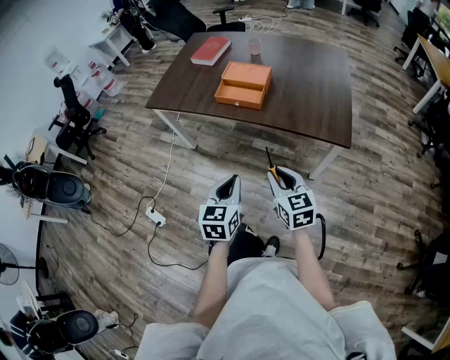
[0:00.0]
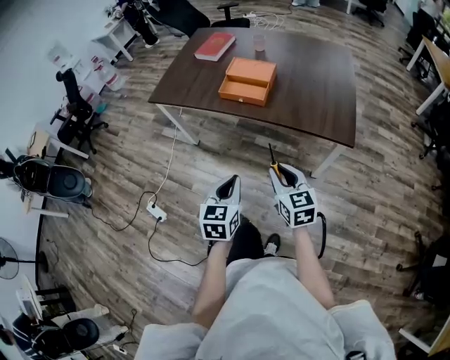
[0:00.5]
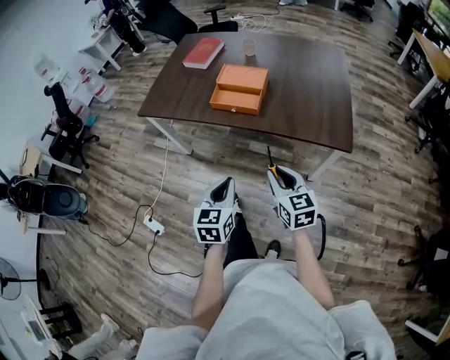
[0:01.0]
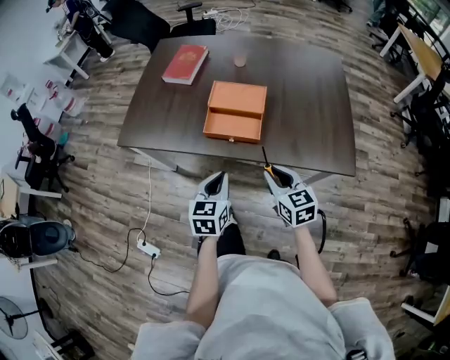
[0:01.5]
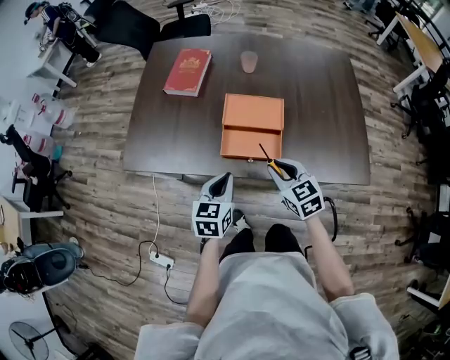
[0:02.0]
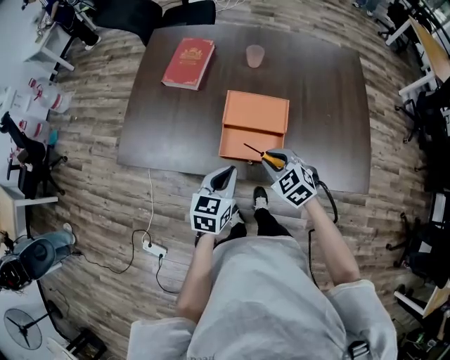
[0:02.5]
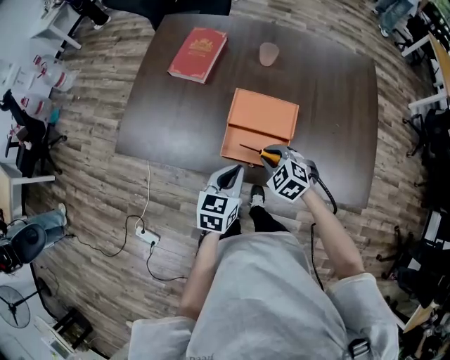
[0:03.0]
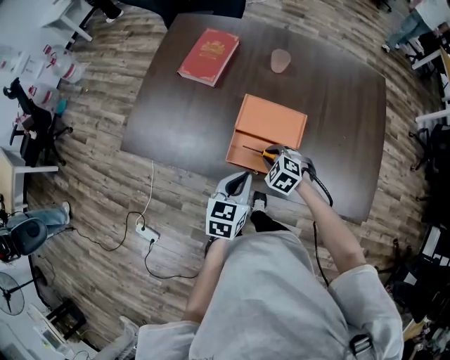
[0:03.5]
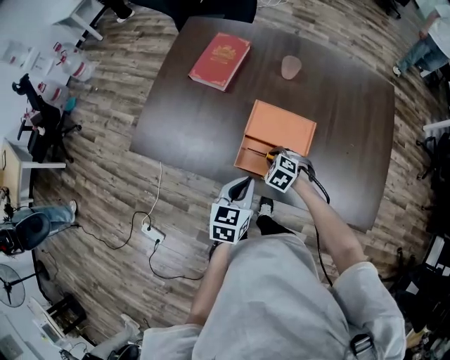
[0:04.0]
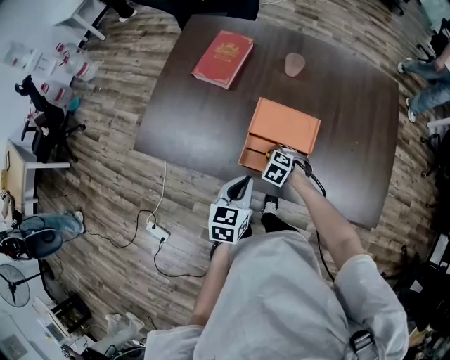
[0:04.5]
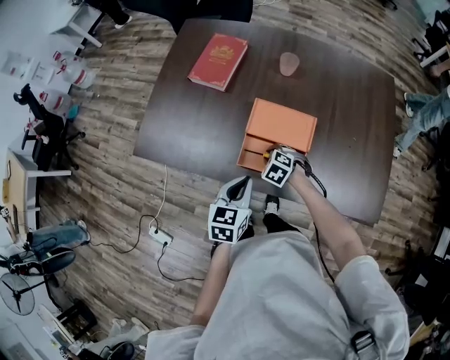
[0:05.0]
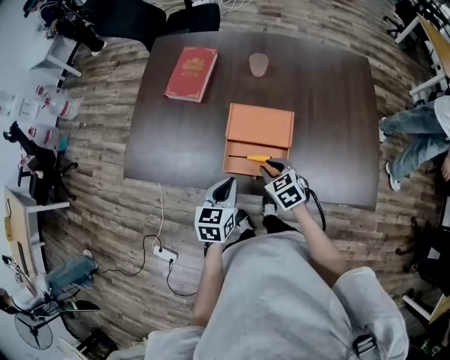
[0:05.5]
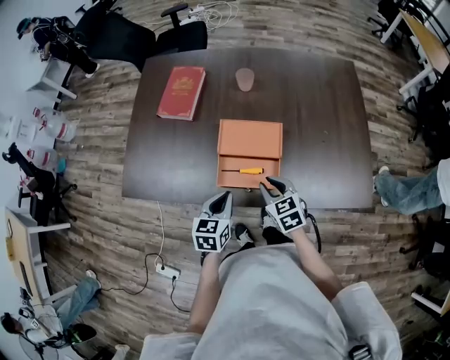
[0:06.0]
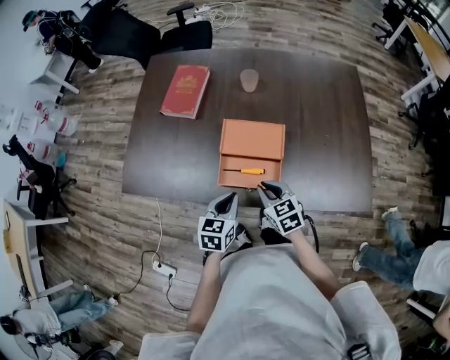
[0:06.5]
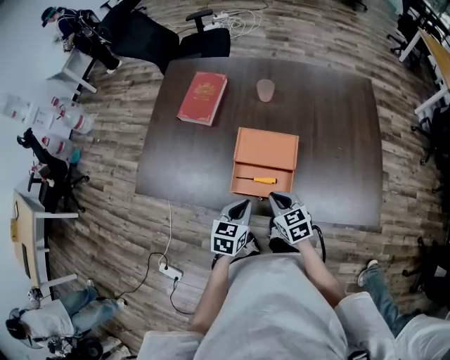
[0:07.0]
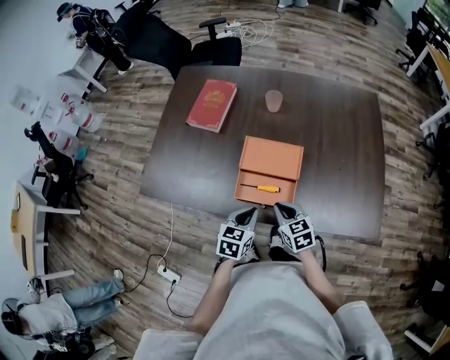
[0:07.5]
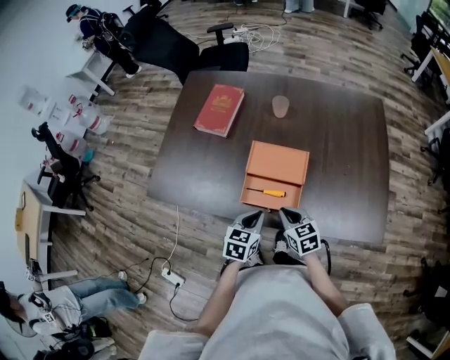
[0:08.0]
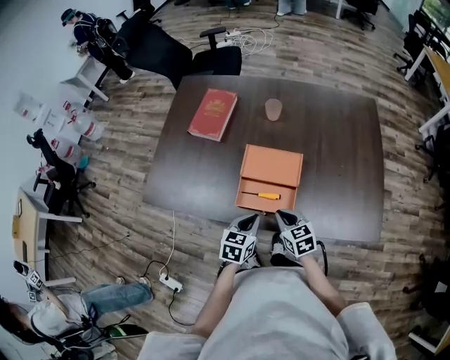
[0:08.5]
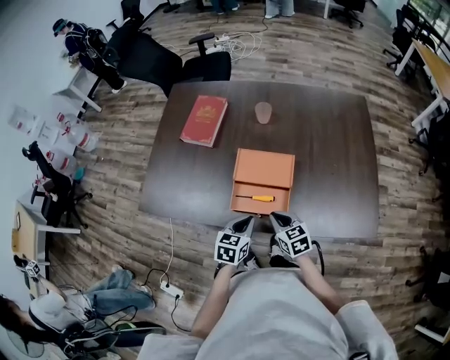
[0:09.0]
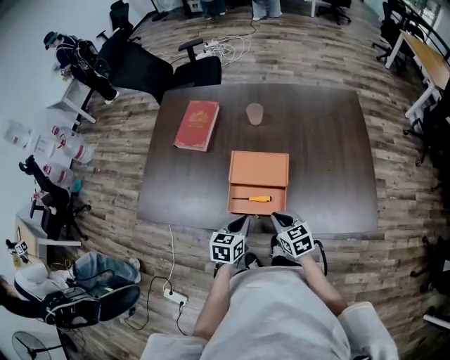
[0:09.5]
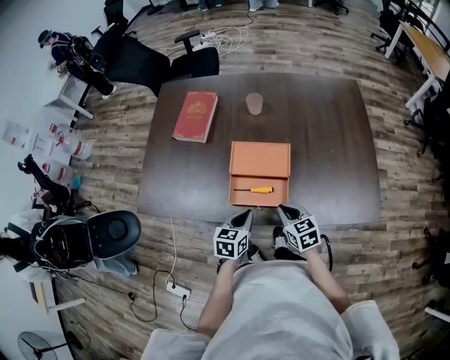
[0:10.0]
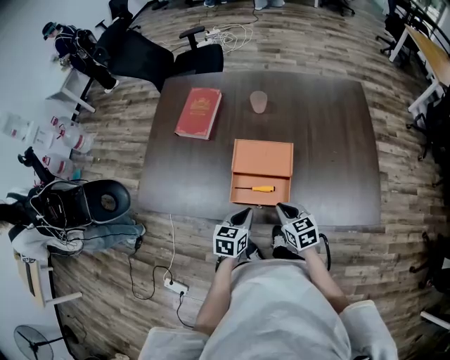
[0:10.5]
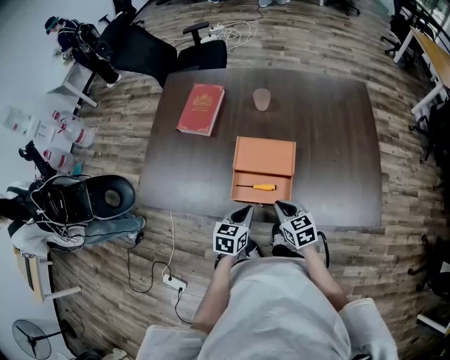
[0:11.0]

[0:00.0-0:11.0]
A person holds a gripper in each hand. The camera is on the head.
0:00.0 to 0:02.0: Both grippers move forward, approximately 35 cm.
0:02.0 to 0:03.5: The left gripper travels forward and to the right by some 10 cm, while the right gripper is displaced downward and forward by some 20 cm, and tips its fingers downward by approximately 30 degrees.
0:03.5 to 0:05.5: The right gripper rotates some 40 degrees.
0:05.5 to 0:07.5: The left gripper moves about 5 cm.
0:07.5 to 0:09.0: Both grippers stay about where they are.
0:09.0 to 0:11.0: The grippers move only a little.

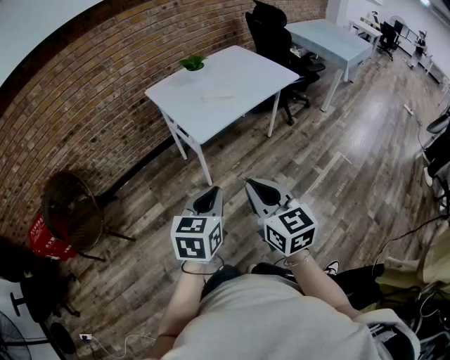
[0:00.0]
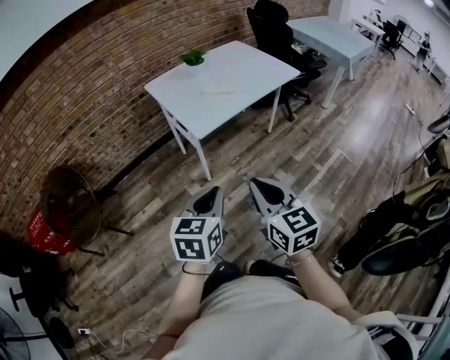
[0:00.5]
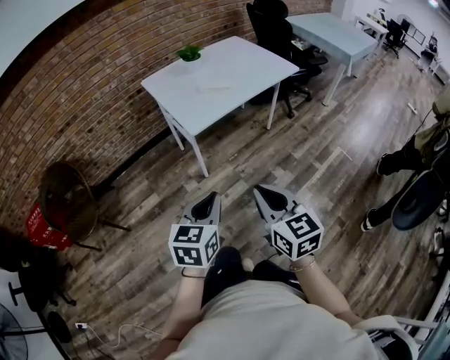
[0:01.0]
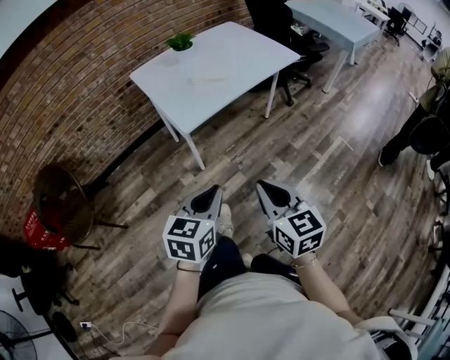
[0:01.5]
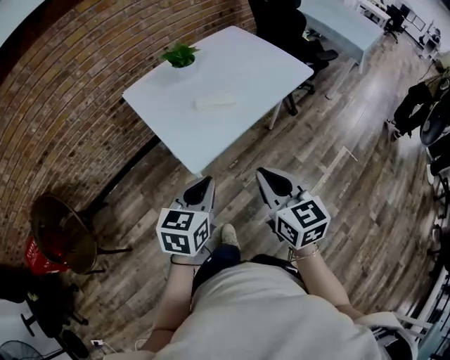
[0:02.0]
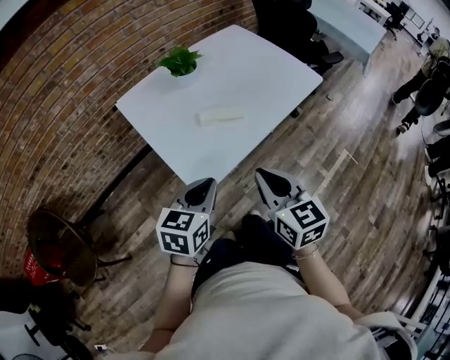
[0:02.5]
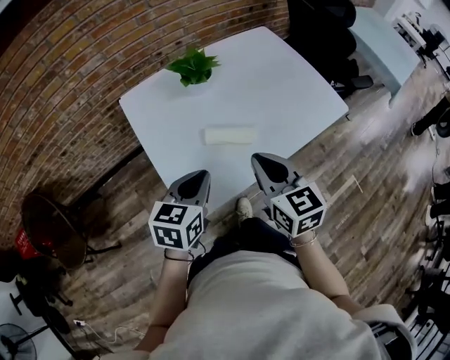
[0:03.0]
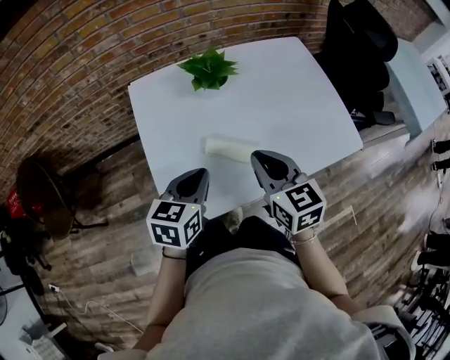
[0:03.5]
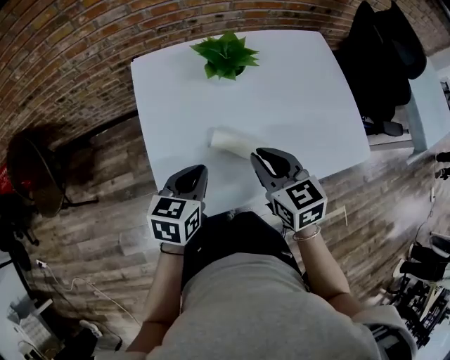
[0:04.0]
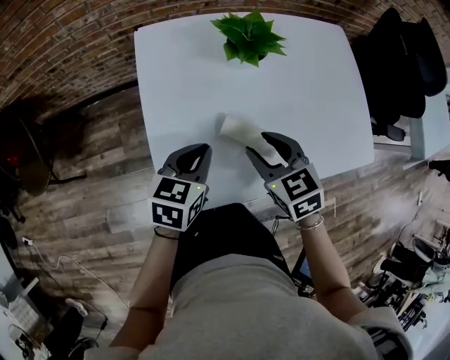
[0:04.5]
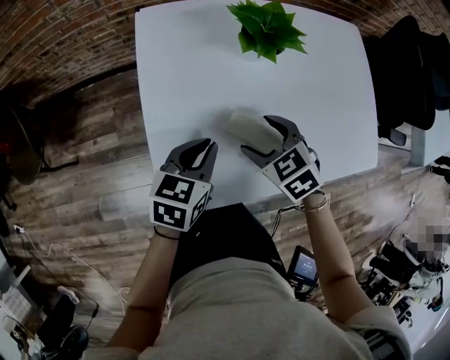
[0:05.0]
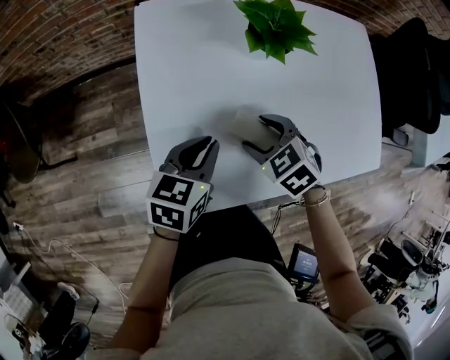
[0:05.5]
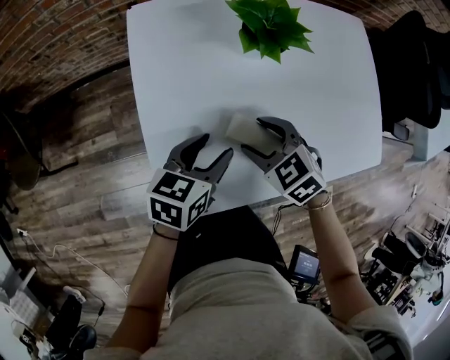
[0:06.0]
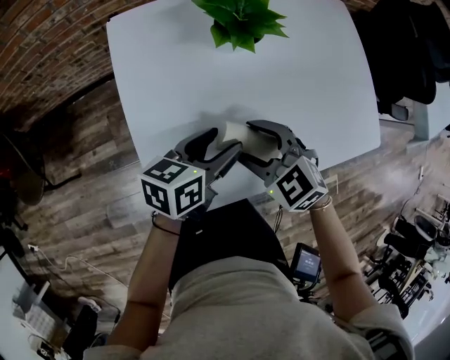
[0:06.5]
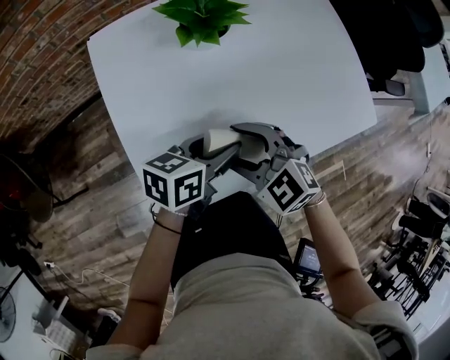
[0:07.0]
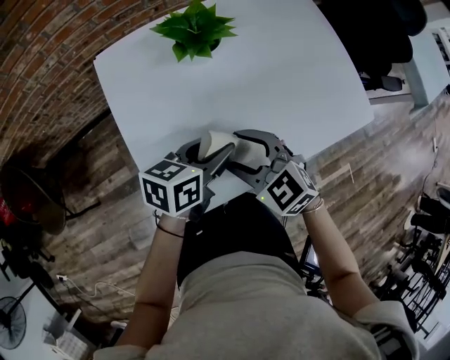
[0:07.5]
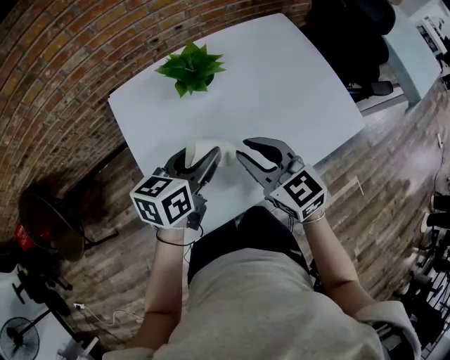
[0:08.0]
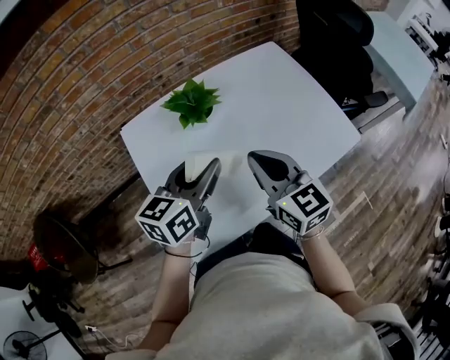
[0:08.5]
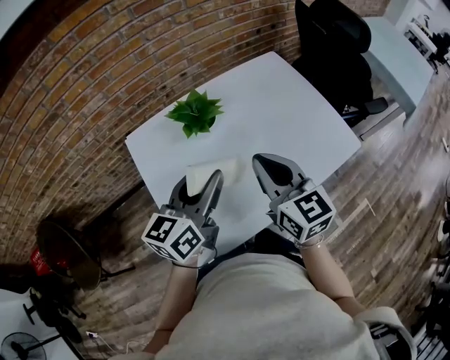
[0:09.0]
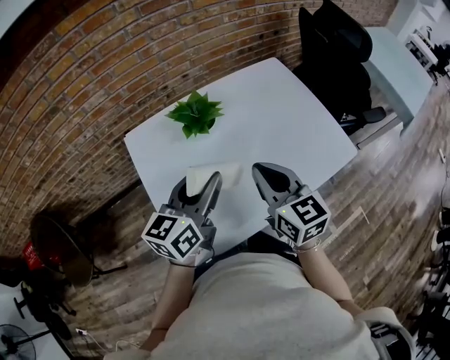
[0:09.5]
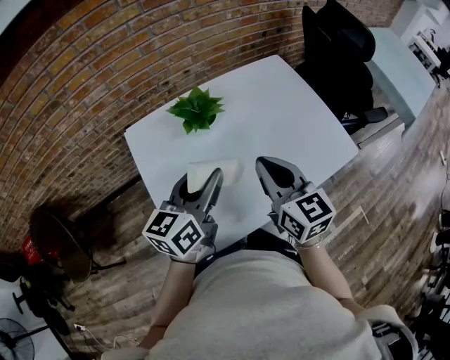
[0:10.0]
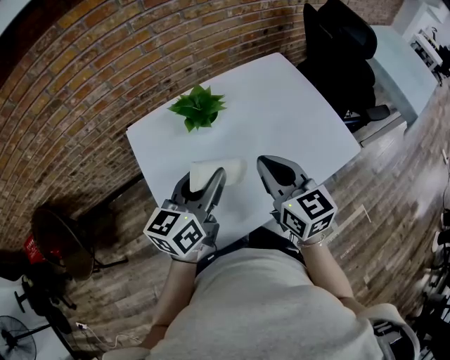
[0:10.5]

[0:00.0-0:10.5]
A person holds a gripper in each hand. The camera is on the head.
0:00.0 to 0:02.0: The grippers both shift forward by about 25 cm.
0:02.0 to 0:04.0: The right gripper shifts by approximately 40 cm, and rotates approximately 40 degrees. The left gripper moves about 30 cm, and rotates about 30 degrees.
0:04.0 to 0:06.5: The left gripper heads forward, covering roughly 5 cm, swivels some 30 degrees, and opens up. The right gripper is displaced downward and to the left by some 10 cm, swivels roughly 40 degrees, and opens.
0:06.5 to 0:08.5: The left gripper is displaced upward by approximately 15 cm, turns by approximately 30 degrees, and closes. The right gripper is displaced upward and to the right by approximately 20 cm, tips its fingers upward by approximately 30 degrees, and closes up.
0:08.5 to 0:10.5: The grippers move only a little.

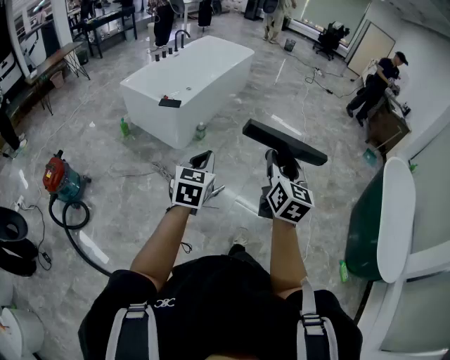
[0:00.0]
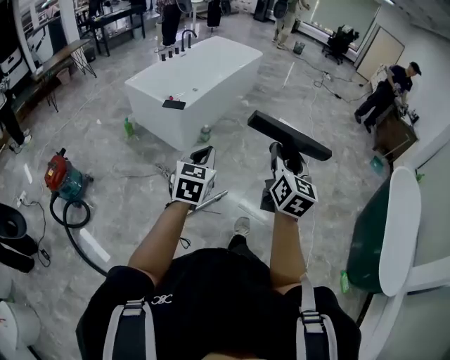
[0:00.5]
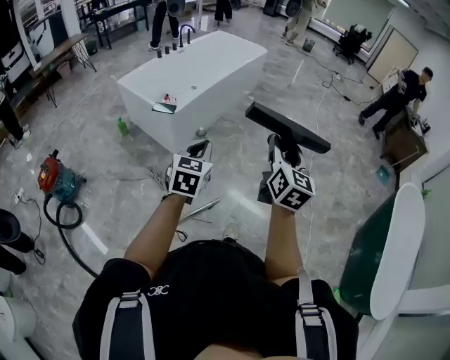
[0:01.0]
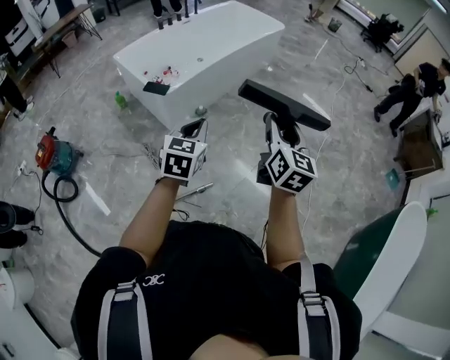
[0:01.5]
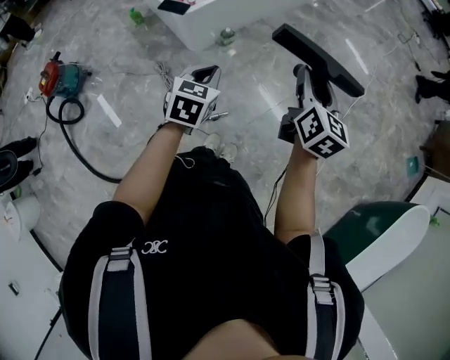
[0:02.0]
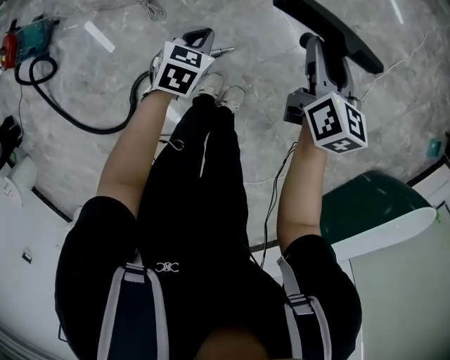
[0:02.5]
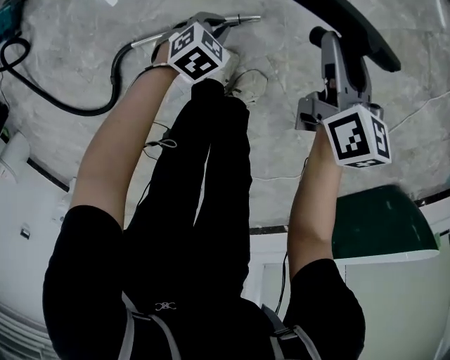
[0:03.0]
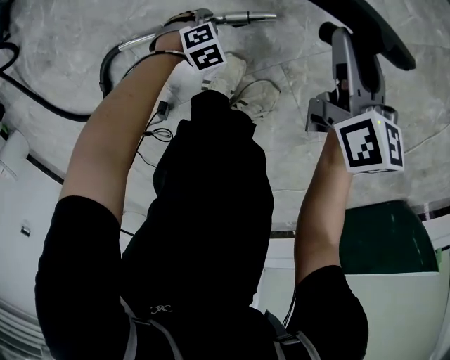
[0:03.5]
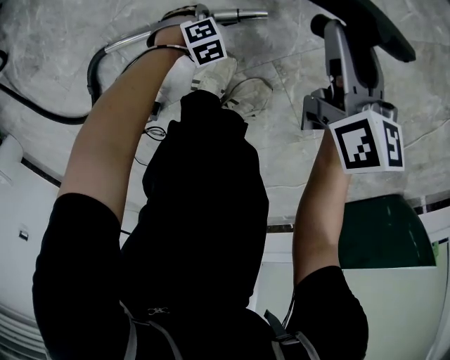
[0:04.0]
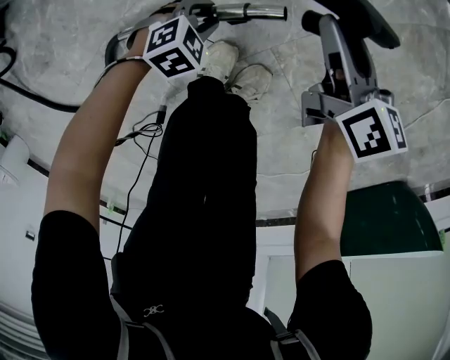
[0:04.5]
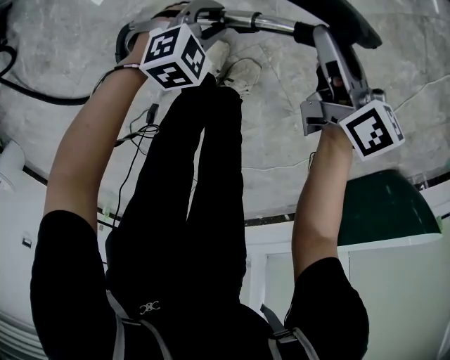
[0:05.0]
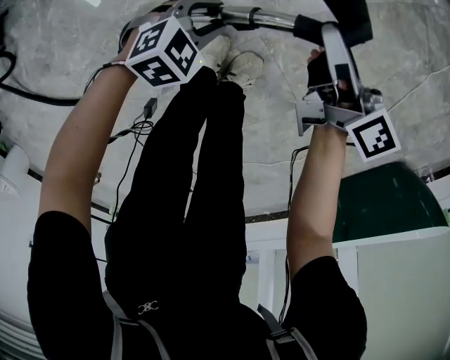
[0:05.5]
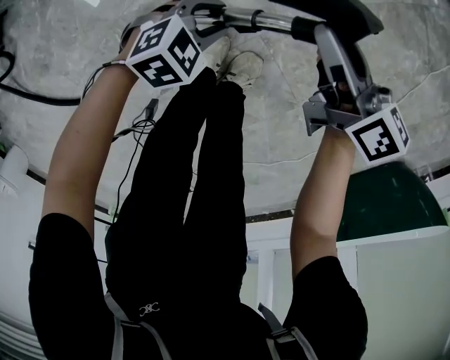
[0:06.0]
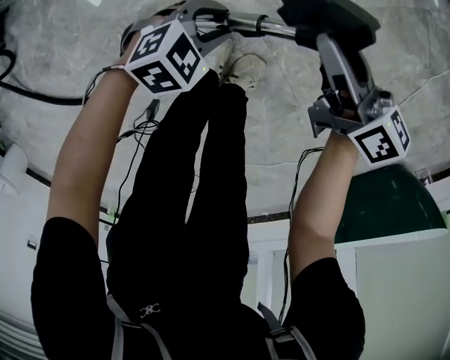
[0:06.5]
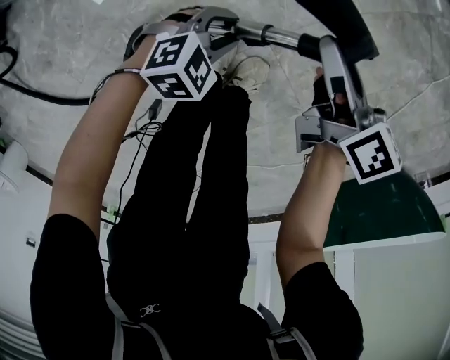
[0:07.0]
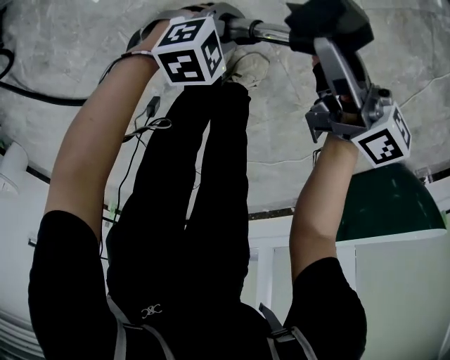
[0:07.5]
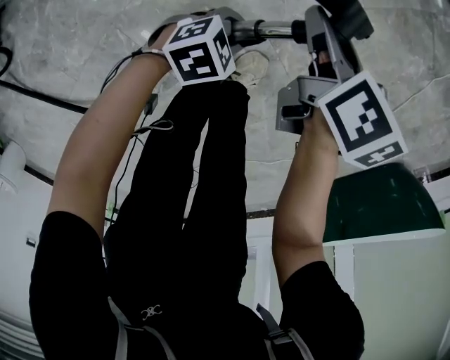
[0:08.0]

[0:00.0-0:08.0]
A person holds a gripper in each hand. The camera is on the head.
0:00.0 to 0:02.0: The two grippers travel together, forward, some 50 cm. The right gripper rotates approximately 20 degrees. The left gripper swivels some 20 degrees.
0:02.0 to 0:04.0: The two grippers go some 80 cm downward. The right gripper changes its angle by approximately 30 degrees, while the left gripper points its fingers some 50 degrees further downward, and opens up.
0:04.0 to 0:06.0: The left gripper is displaced upward by approximately 30 cm, and swivels approximately 30 degrees, while the right gripper is displaced upward by roughly 15 cm.
0:06.0 to 0:08.0: The left gripper changes place by roughly 5 cm; the right gripper changes its angle by roughly 30 degrees.
